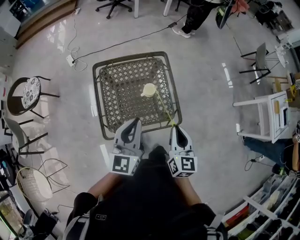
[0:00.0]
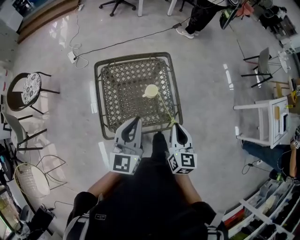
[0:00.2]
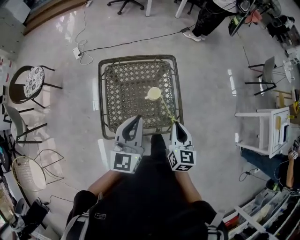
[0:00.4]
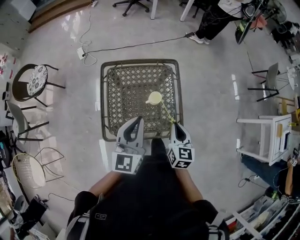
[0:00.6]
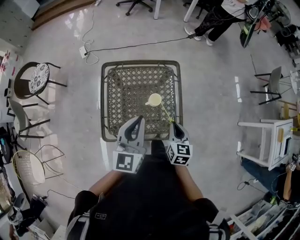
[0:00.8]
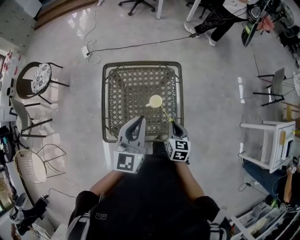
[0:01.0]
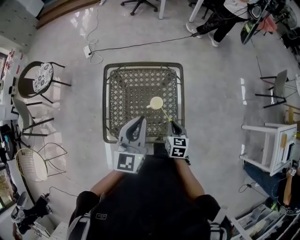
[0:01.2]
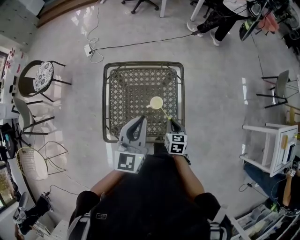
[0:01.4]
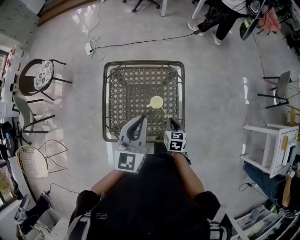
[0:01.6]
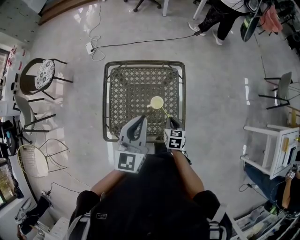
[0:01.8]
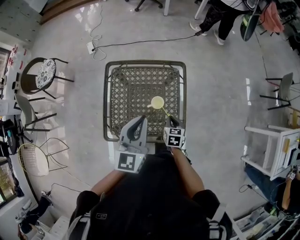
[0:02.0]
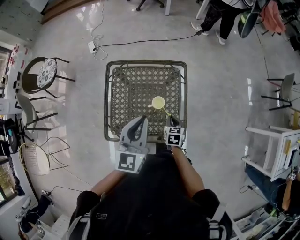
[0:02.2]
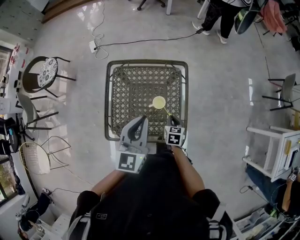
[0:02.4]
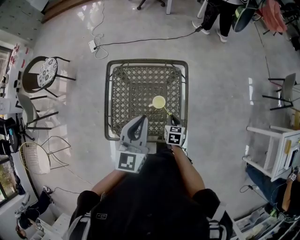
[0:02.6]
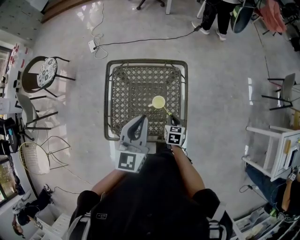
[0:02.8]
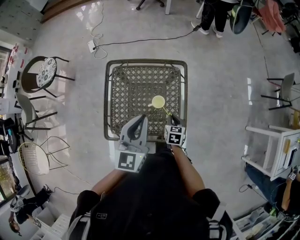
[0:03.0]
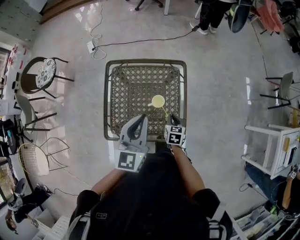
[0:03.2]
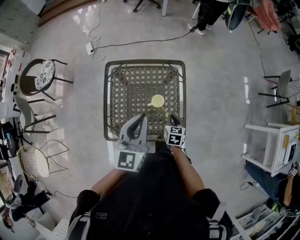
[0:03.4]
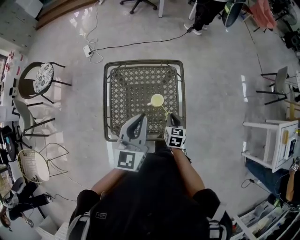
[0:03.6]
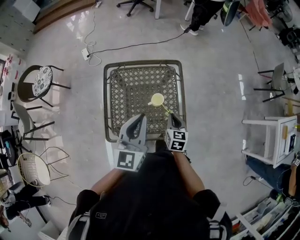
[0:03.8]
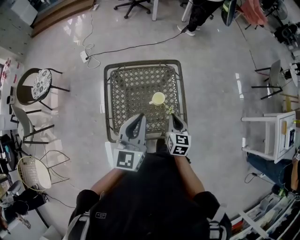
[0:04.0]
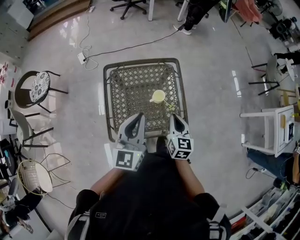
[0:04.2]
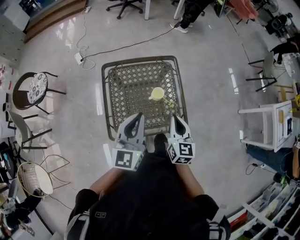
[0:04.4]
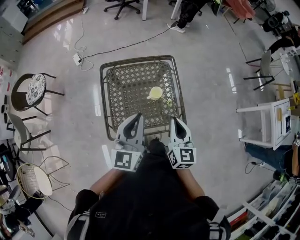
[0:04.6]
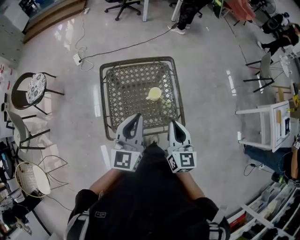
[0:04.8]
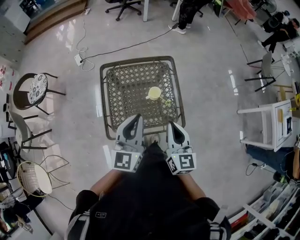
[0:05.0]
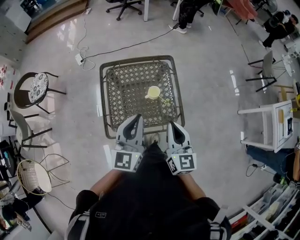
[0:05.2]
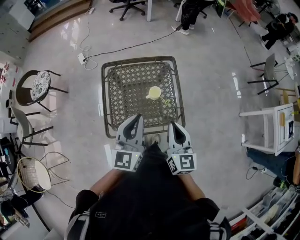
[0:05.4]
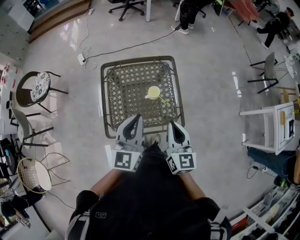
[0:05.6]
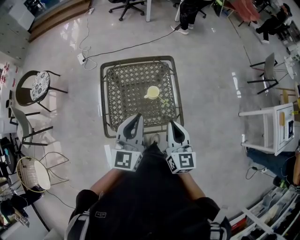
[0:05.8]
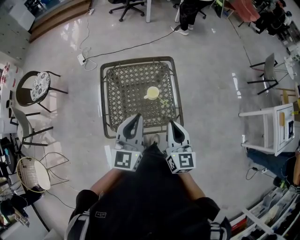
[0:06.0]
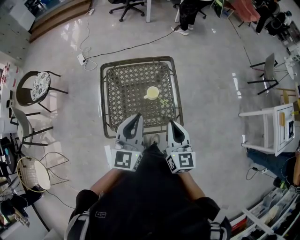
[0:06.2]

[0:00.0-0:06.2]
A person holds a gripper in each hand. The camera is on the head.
0:00.0 to 0:01.6: The left gripper shifts approximately 10 cm forward; the right gripper is displaced downward and forward by some 25 cm, and turns by about 30 degrees.
0:01.6 to 0:03.2: The grippers move only a little.
0:03.2 to 0:04.6: The left gripper goes roughly 10 cm backward and to the left, while the right gripper is displaced upward and backward by approximately 30 cm, and tilts its fingers some 30 degrees upward.
0:04.6 to 0:06.2: The left gripper changes place by some 5 cm.

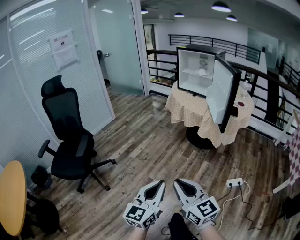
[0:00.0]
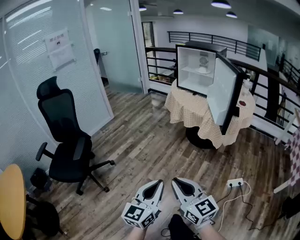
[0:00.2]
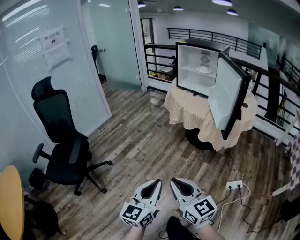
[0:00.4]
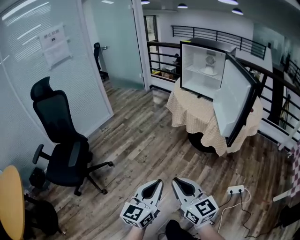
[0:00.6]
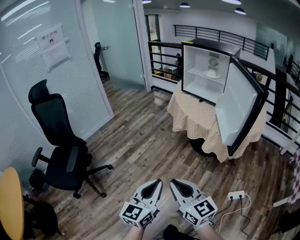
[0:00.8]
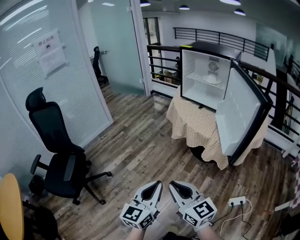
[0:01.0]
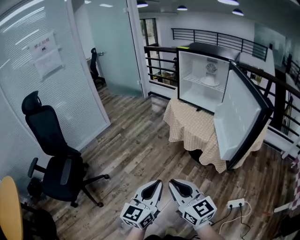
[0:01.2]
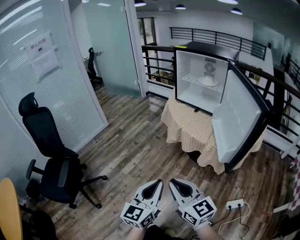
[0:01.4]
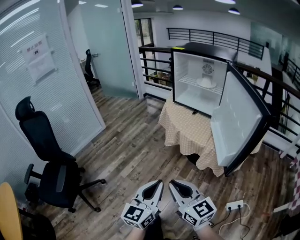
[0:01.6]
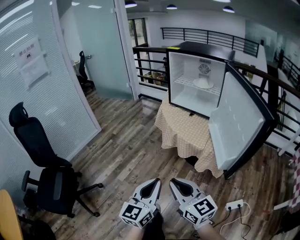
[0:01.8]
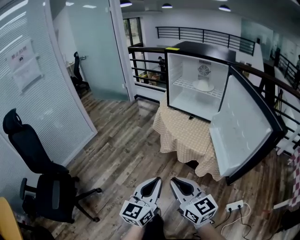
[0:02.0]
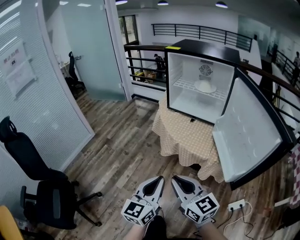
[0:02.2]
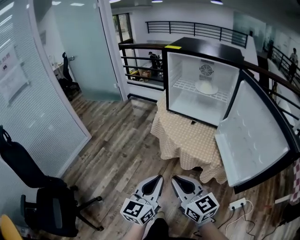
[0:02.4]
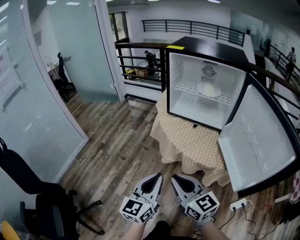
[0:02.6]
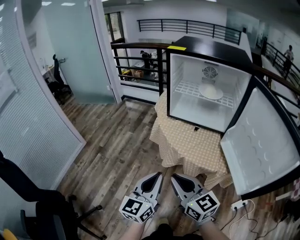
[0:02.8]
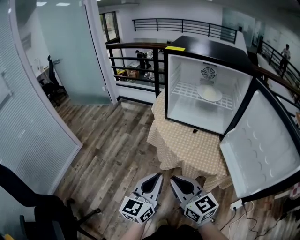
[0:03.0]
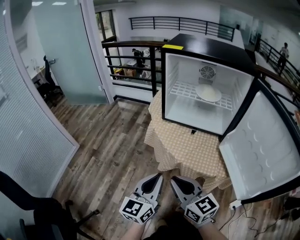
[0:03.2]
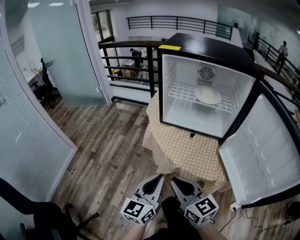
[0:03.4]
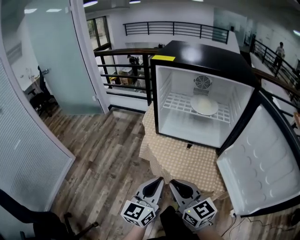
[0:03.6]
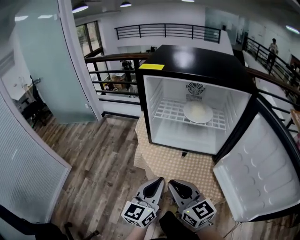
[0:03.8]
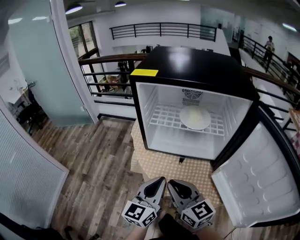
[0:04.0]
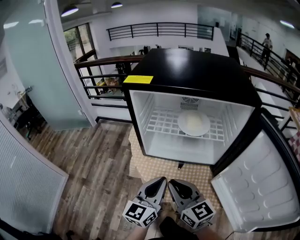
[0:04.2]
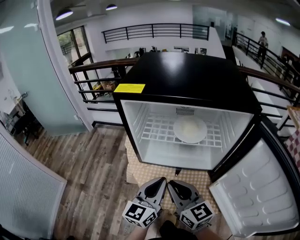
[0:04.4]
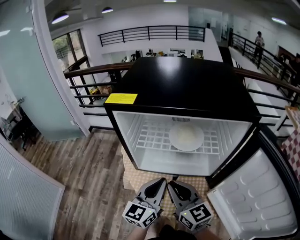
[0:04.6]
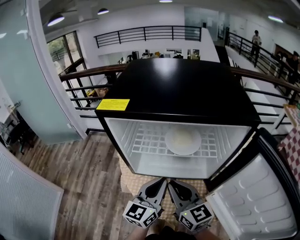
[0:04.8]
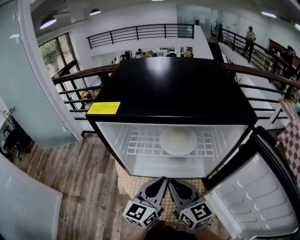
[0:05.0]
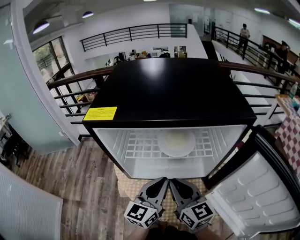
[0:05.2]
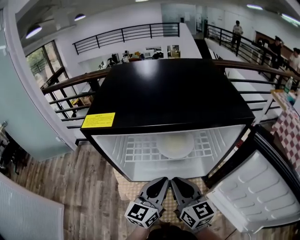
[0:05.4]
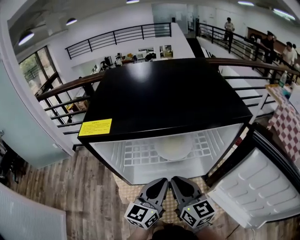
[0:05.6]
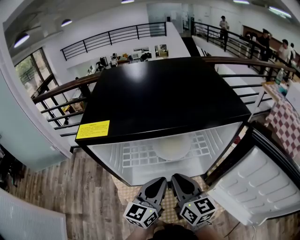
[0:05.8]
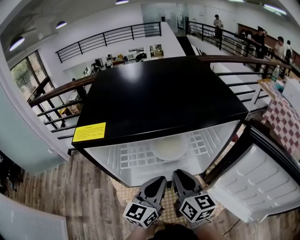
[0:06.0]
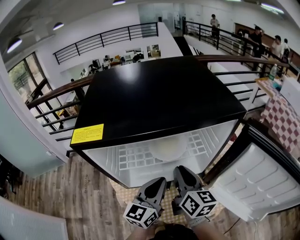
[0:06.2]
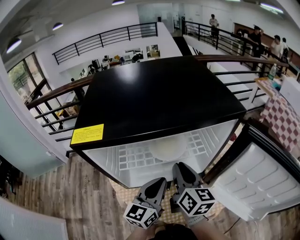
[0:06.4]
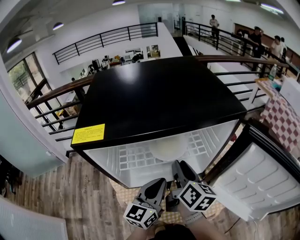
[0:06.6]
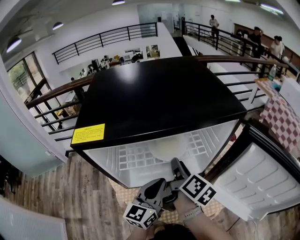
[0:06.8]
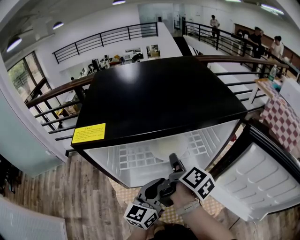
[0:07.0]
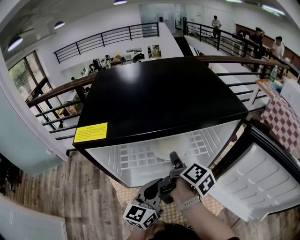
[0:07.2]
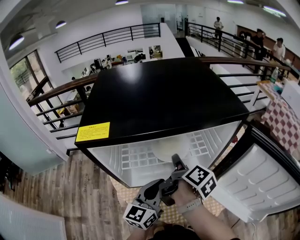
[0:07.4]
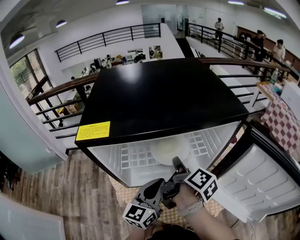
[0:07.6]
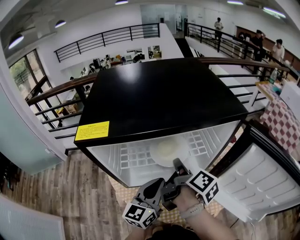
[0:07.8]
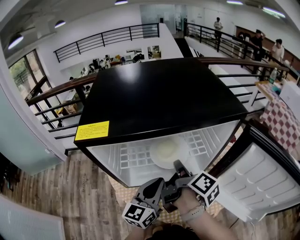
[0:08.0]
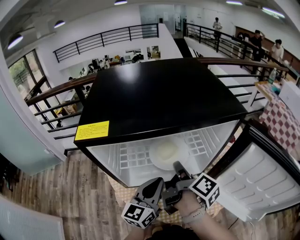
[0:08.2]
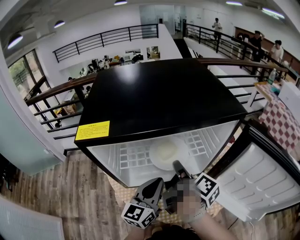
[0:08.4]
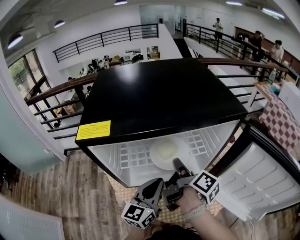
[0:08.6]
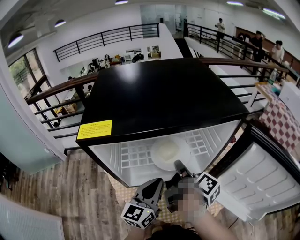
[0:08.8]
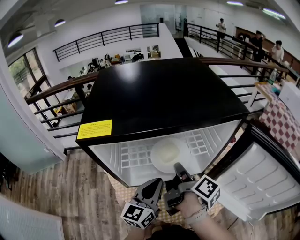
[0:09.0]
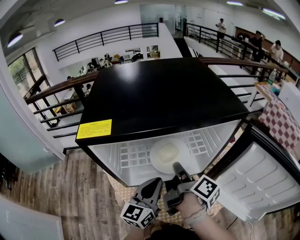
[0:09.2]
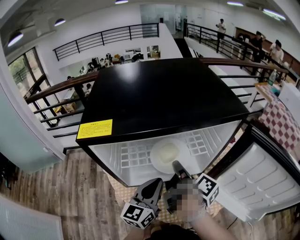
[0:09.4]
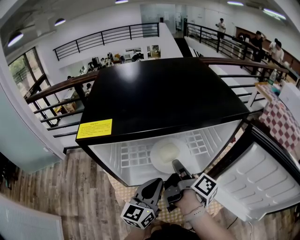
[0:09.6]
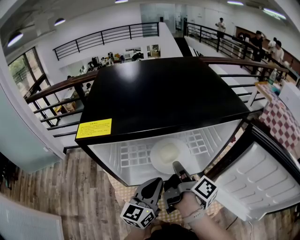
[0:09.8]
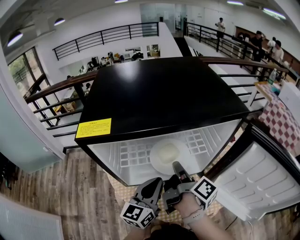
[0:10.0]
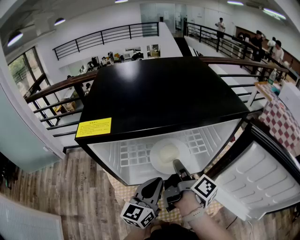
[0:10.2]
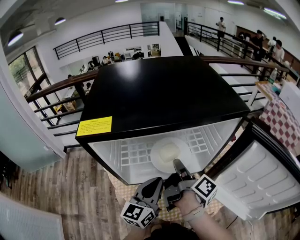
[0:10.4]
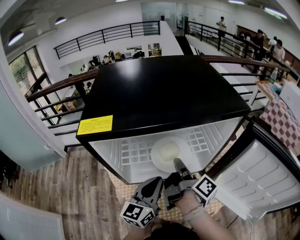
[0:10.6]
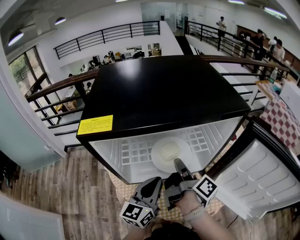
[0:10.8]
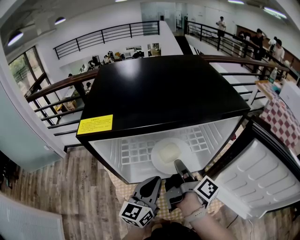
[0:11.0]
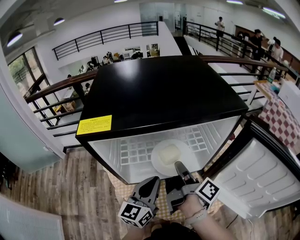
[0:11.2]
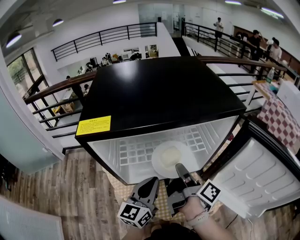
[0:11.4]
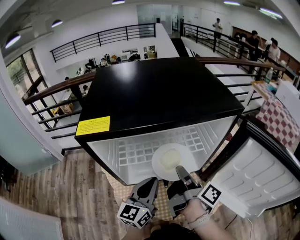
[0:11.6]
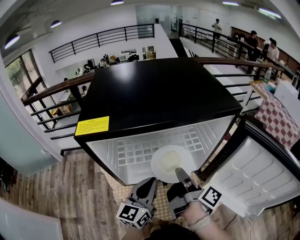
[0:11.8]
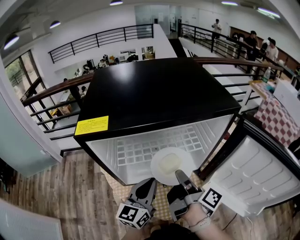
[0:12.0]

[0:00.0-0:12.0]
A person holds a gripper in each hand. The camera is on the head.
0:00.0 to 0:01.6: Both grippers travel together forward, approximately 35 cm.
0:01.6 to 0:03.0: The two grippers go approximately 30 cm forward.
0:03.0 to 0:04.4: The left gripper moves forward and to the right, about 30 cm, while the right gripper travels forward by some 25 cm.
0:04.4 to 0:06.0: The right gripper moves forward and to the right, some 15 cm, and turns by about 30 degrees. The left gripper moves forward, approximately 10 cm.
0:06.0 to 0:07.6: The right gripper heads forward, covering approximately 5 cm, and rolls clockwise, seen from behind, by roughly 50 degrees.
0:07.6 to 0:10.4: The grippers stay close to where they were, moving slightly.
0:10.4 to 0:12.0: The right gripper heads backward, covering roughly 5 cm.

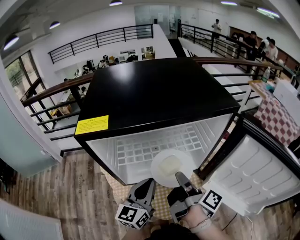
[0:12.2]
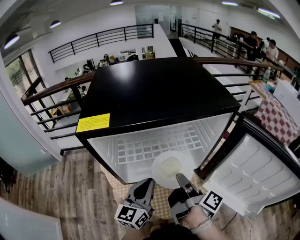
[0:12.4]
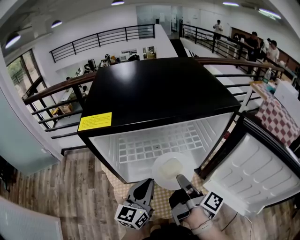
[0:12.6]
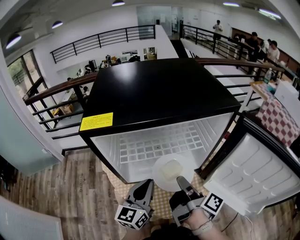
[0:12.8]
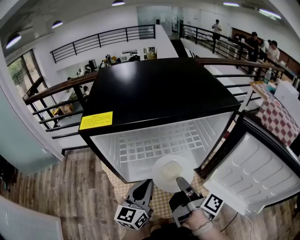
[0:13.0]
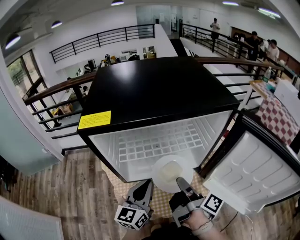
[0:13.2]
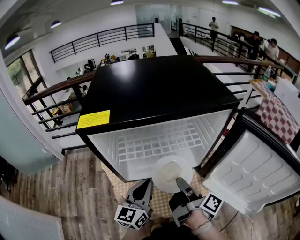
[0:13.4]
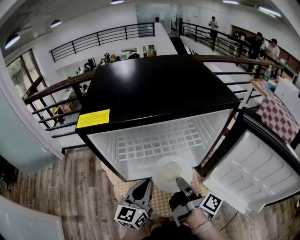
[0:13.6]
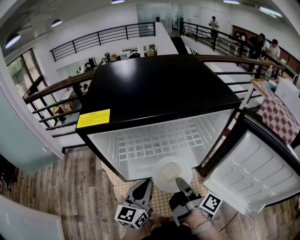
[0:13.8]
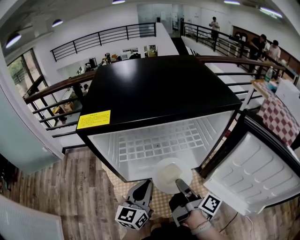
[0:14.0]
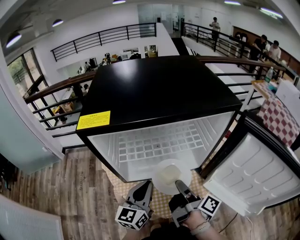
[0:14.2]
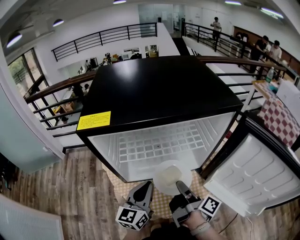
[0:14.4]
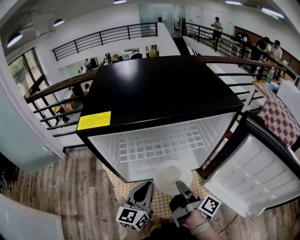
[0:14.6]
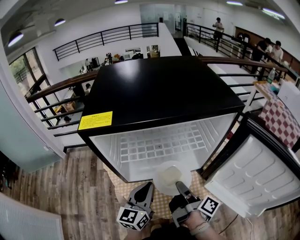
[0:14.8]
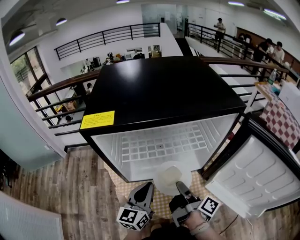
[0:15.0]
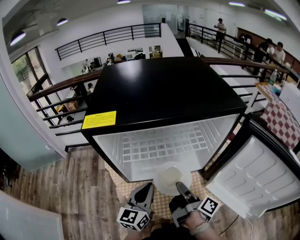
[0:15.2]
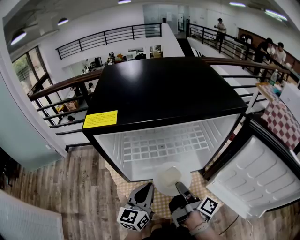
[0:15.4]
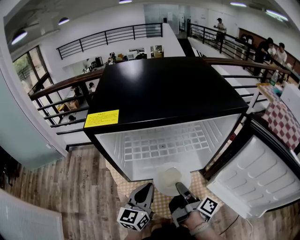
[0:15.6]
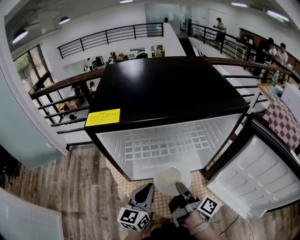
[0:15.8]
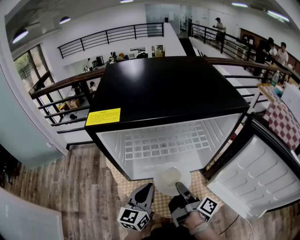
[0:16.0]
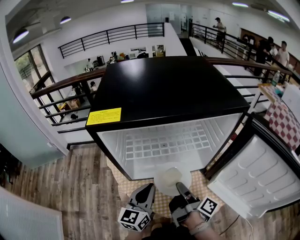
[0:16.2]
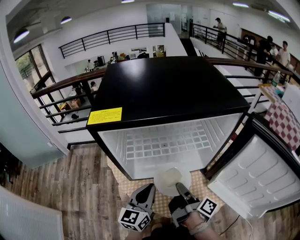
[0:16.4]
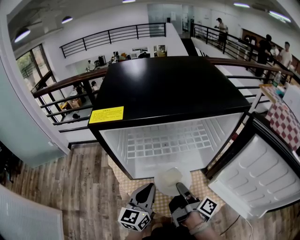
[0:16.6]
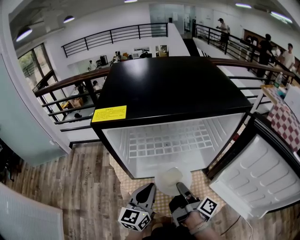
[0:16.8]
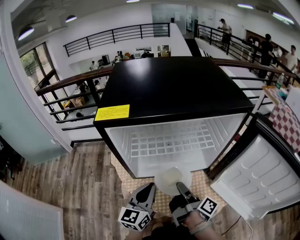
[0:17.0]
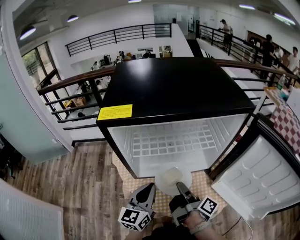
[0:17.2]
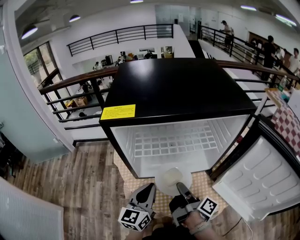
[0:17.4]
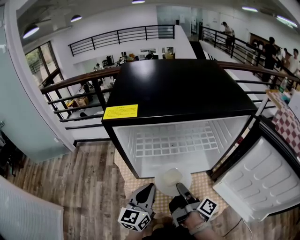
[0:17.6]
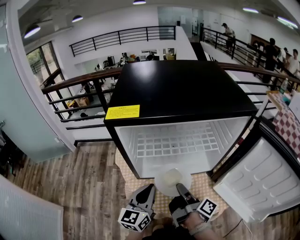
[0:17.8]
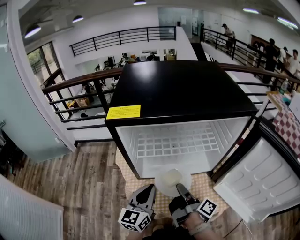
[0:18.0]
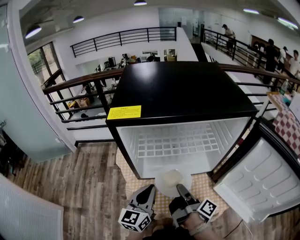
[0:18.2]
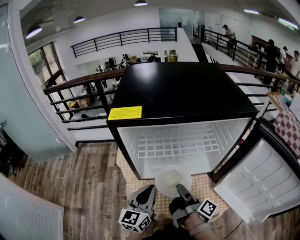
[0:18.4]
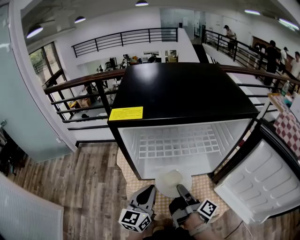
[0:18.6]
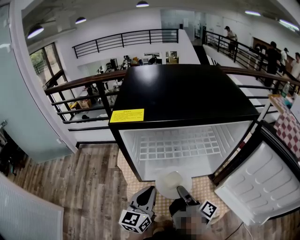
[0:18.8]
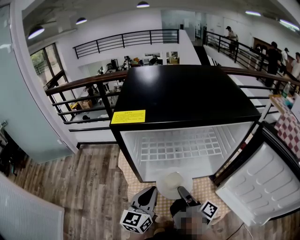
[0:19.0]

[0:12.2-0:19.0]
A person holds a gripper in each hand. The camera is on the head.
0:12.2 to 0:13.6: The grippers move only a little.
0:13.6 to 0:16.2: The grippers move only a little.
0:16.2 to 0:17.6: The grippers stay close to where they were, moving slightly.
0:17.6 to 0:19.0: Neither gripper changes place.
